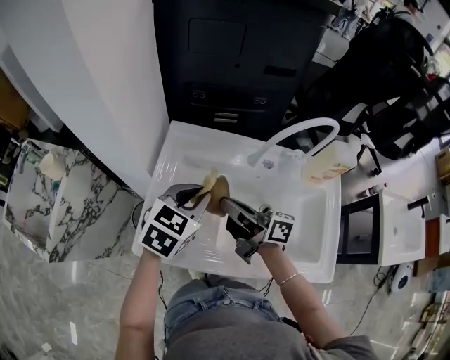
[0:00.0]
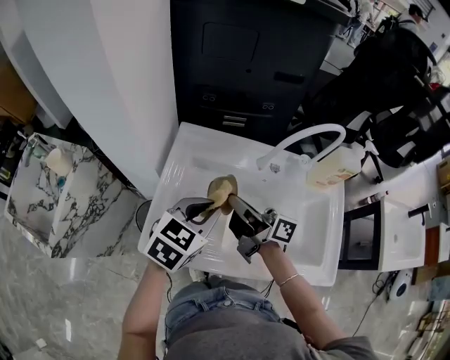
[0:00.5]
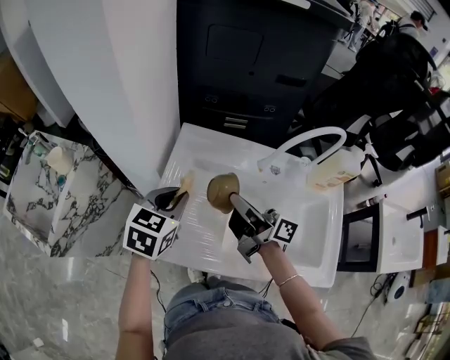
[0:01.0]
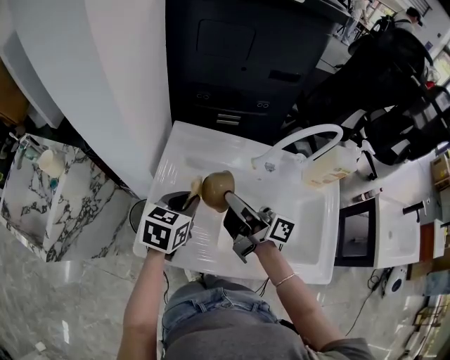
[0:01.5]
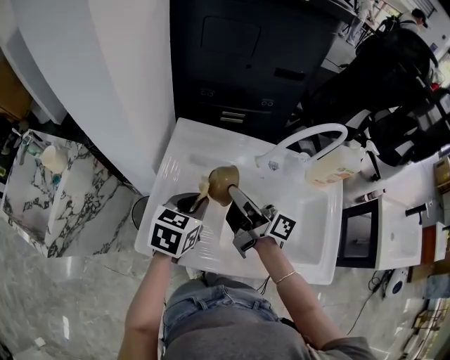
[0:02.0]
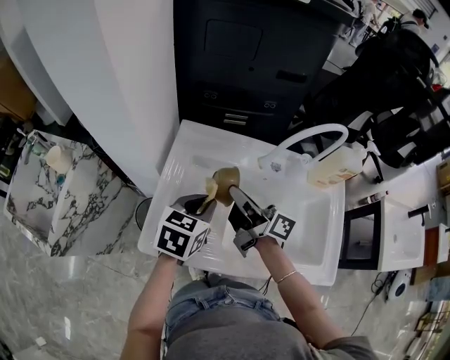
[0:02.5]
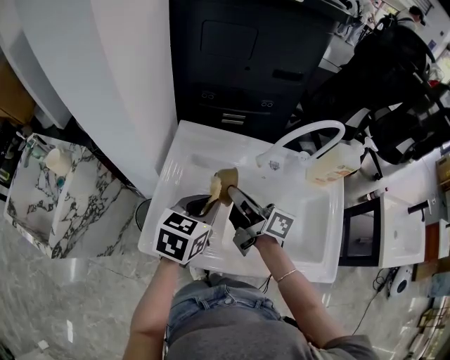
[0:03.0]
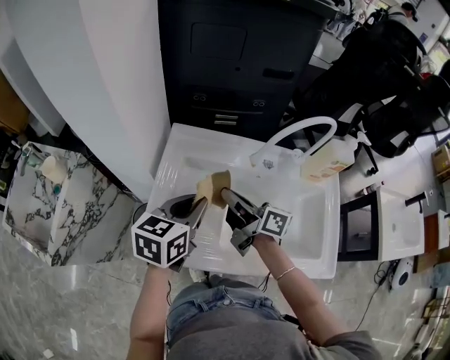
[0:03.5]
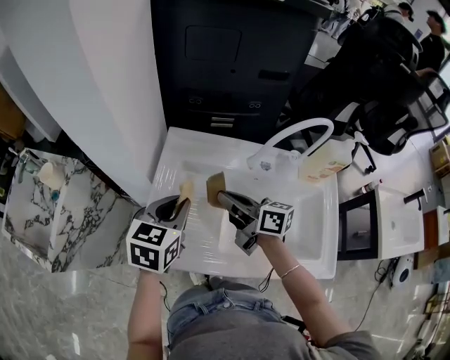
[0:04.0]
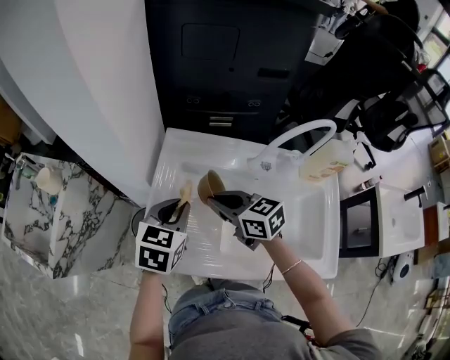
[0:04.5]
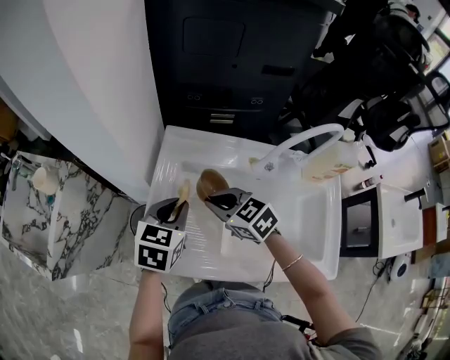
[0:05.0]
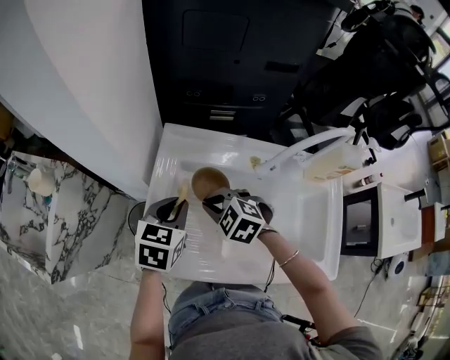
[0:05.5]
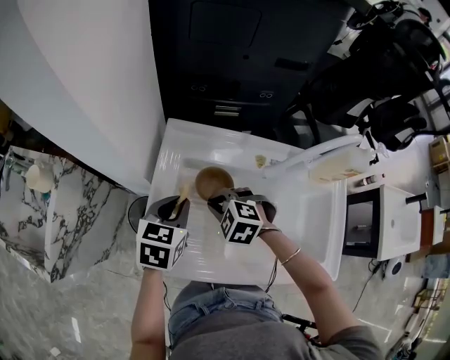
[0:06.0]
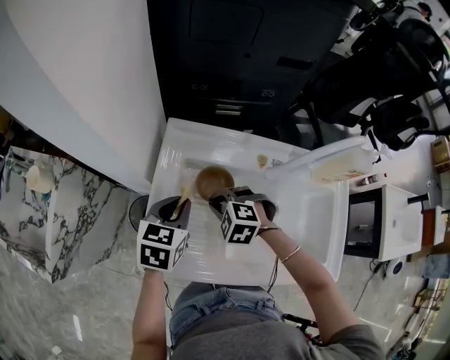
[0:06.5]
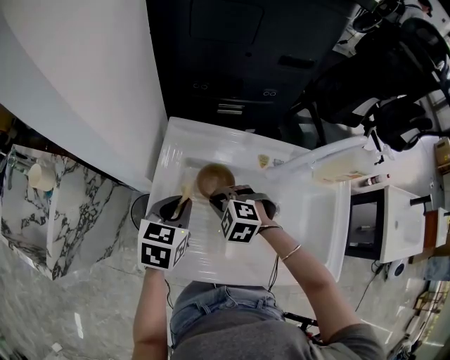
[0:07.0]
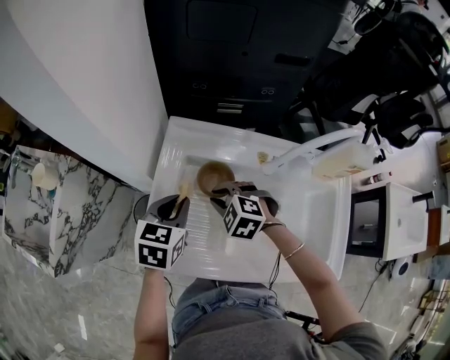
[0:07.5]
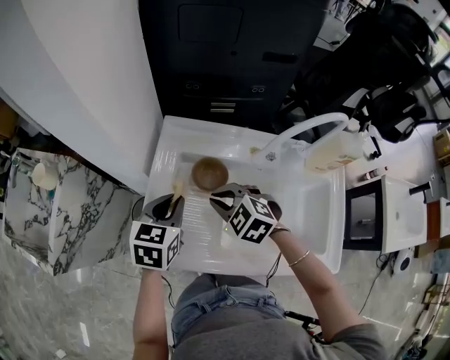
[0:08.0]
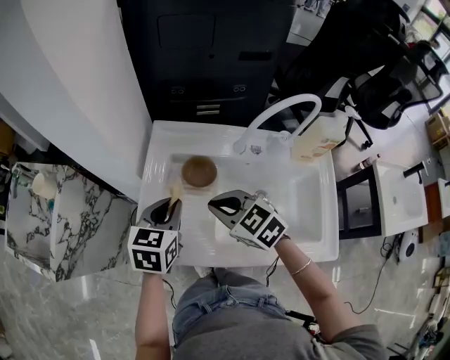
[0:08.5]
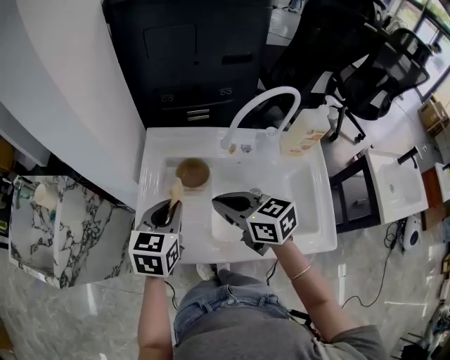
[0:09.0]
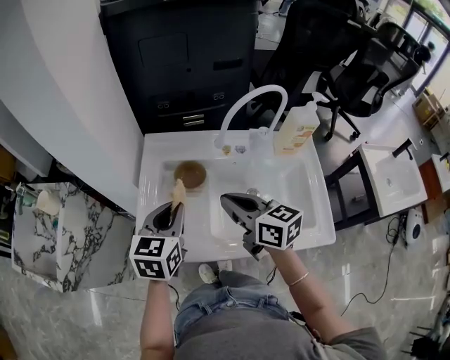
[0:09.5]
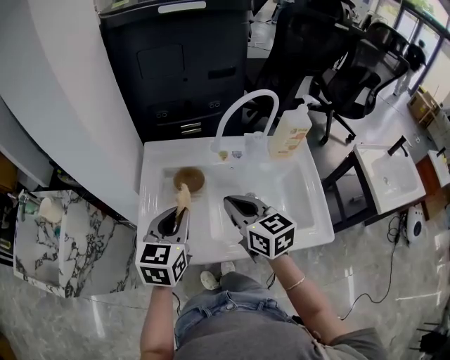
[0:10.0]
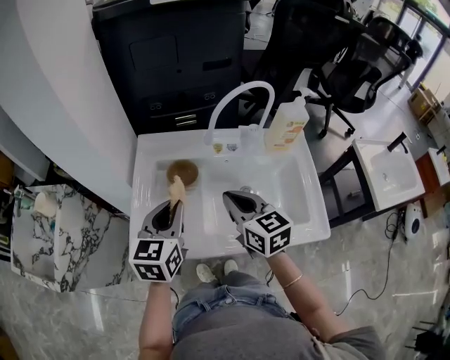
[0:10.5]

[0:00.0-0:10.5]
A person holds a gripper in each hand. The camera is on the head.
0:00.0 to 0:02.0: The left gripper reaches roughly 10 cm to the left, then returns.
0:02.0 to 0:04.0: The left gripper shifts approximately 5 cm upward. Meanwhile the right gripper rotates roughly 30 degrees.
0:04.0 to 0:06.5: The left gripper moves downward, roughly 10 cm. Meanwhile the right gripper shifts approximately 15 cm downward, and angles its fingers downward, by some 60 degrees.
0:06.5 to 0:08.5: The right gripper goes roughly 15 cm upward and backward, and rotates approximately 40 degrees, while the left gripper heads backward, covering roughly 5 cm.
0:08.5 to 0:10.5: The right gripper moves to the right and upward, about 10 cm, and rotates roughly 40 degrees, while the left gripper shifts some 10 cm upward and backward.

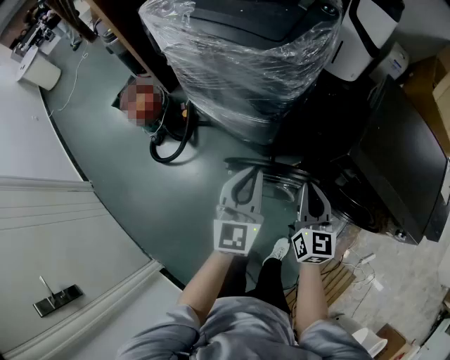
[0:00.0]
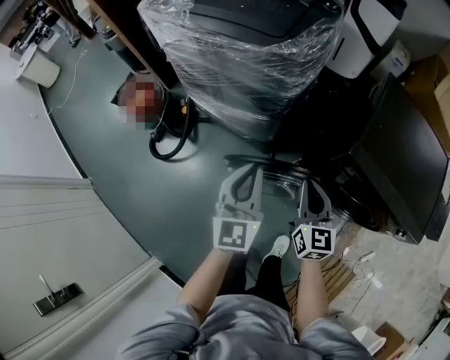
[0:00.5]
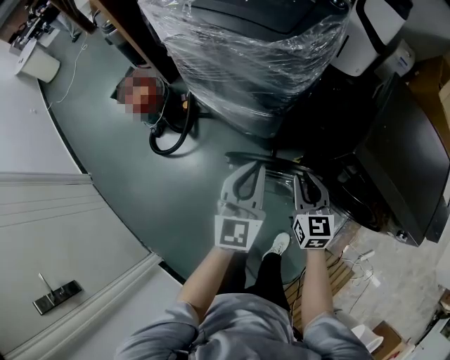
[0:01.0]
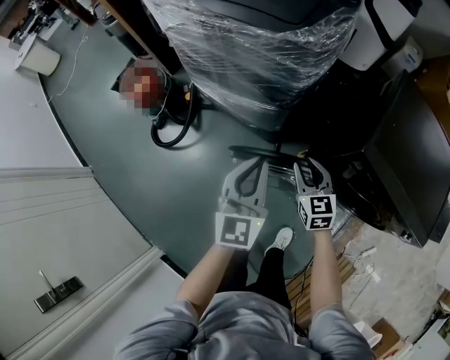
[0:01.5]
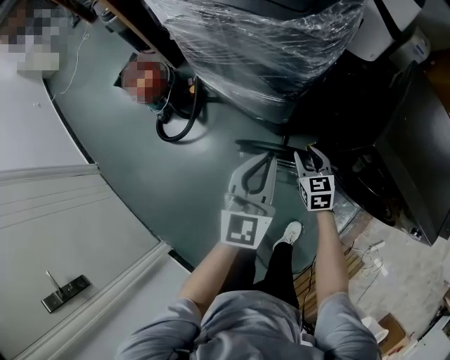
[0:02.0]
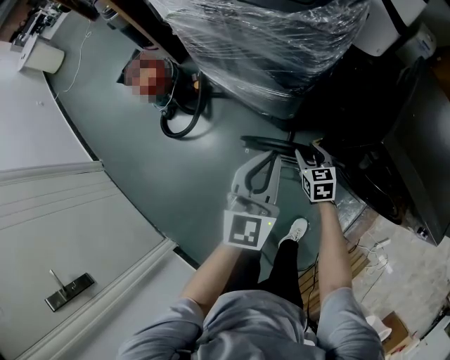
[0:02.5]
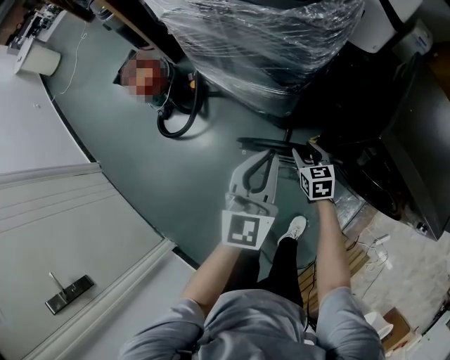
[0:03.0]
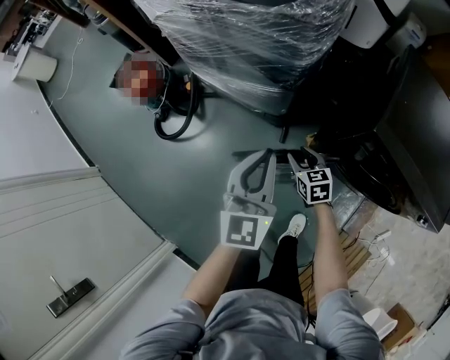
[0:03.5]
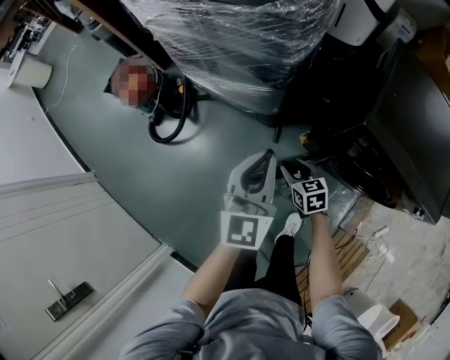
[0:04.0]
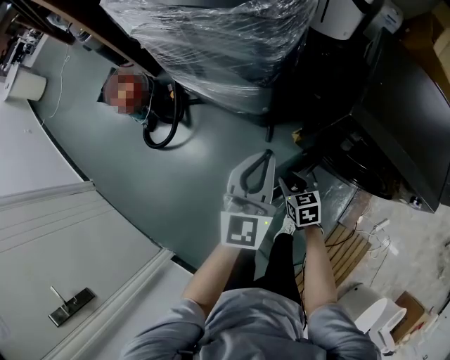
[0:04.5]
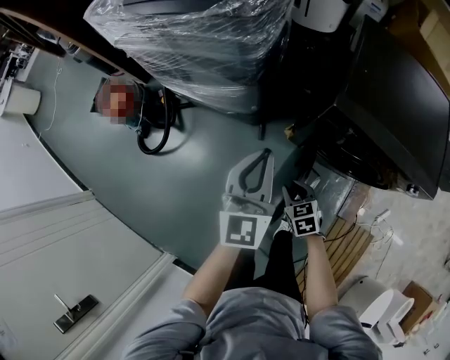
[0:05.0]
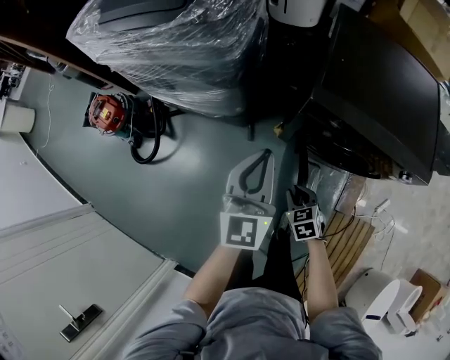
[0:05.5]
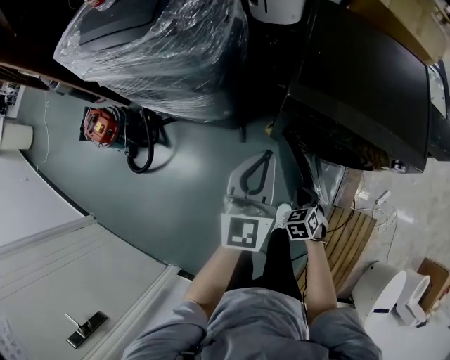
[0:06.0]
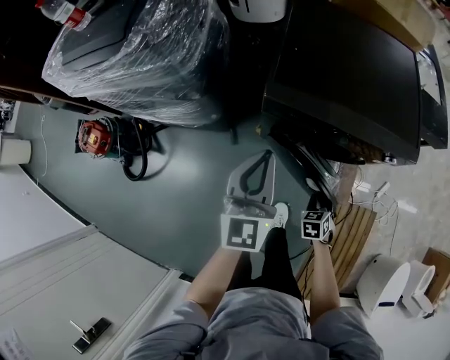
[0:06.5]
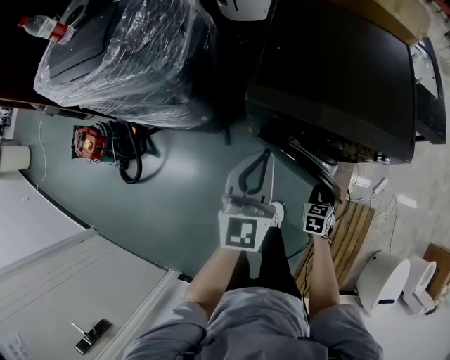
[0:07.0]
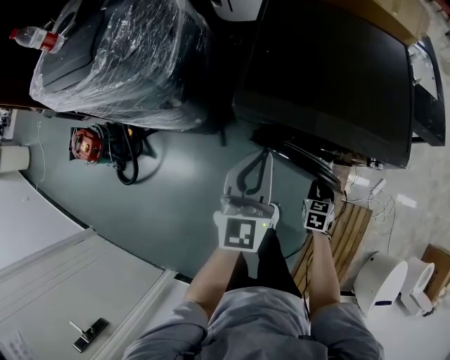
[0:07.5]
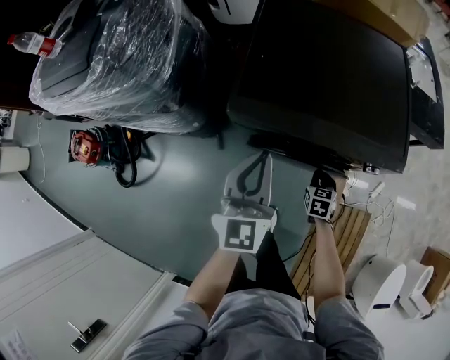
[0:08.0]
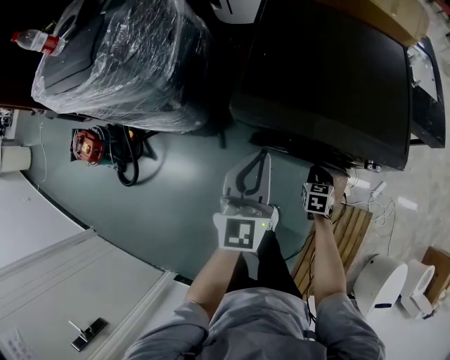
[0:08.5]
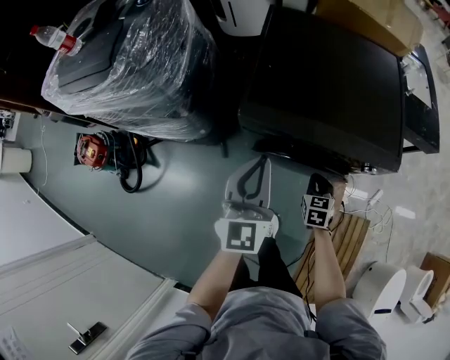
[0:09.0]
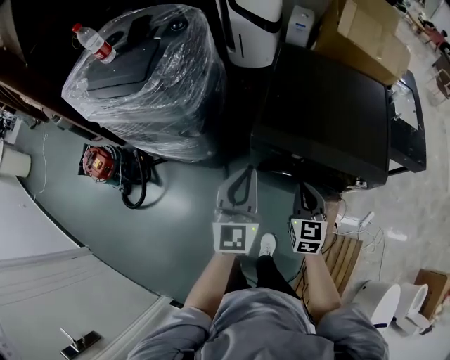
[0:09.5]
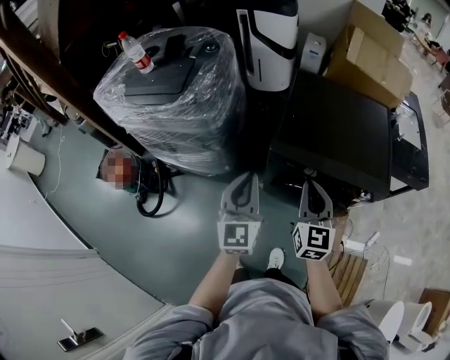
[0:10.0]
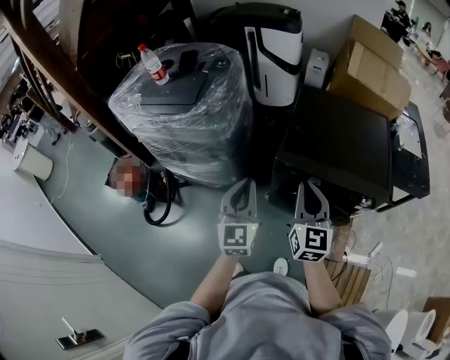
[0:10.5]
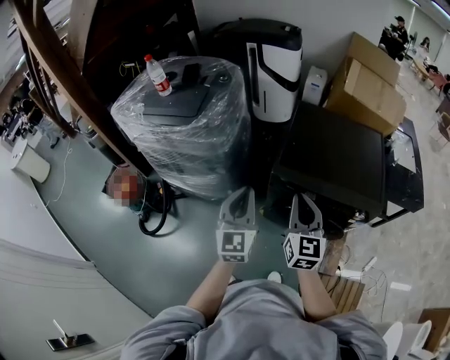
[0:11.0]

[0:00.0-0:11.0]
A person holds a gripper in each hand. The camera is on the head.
0:00.0 to 0:02.0: The right gripper is displaced downward and forward by roughly 20 cm, changes its angle by about 30 degrees, and opens its fingers.
0:02.0 to 0:03.5: The right gripper moves approximately 5 cm.
0:03.5 to 0:05.5: The left gripper goes approximately 15 cm to the right, while the right gripper heads backward and to the right, covering approximately 20 cm, and closes up.
0:05.5 to 0:07.5: The left gripper ends up roughly 20 cm from where it was; the right gripper moves some 30 cm, and changes its angle by about 30 degrees.
0:07.5 to 0:09.0: The right gripper moves upward, about 5 cm.
0:09.0 to 0:11.0: The right gripper travels upward and to the left by some 40 cm, and tilts its fingers roughly 40 degrees upward. The left gripper goes roughly 20 cm to the left, upward and backward.

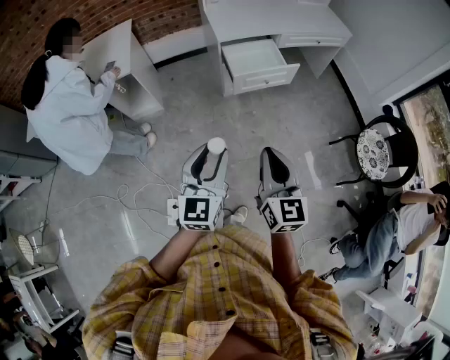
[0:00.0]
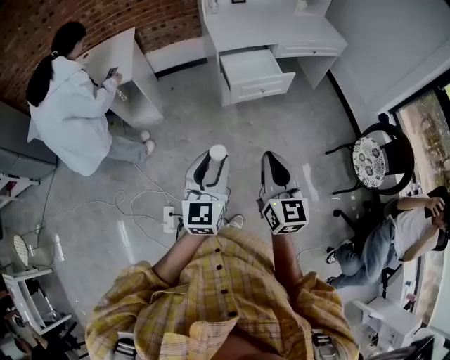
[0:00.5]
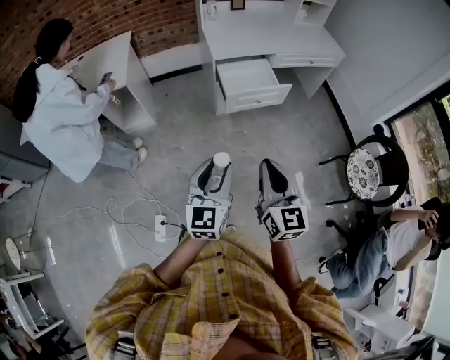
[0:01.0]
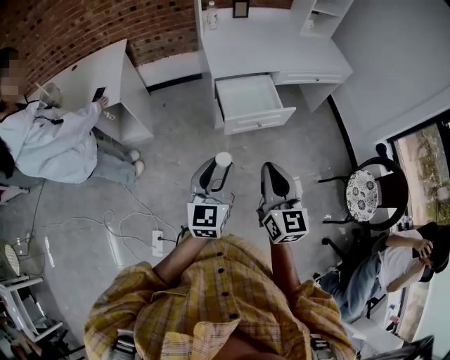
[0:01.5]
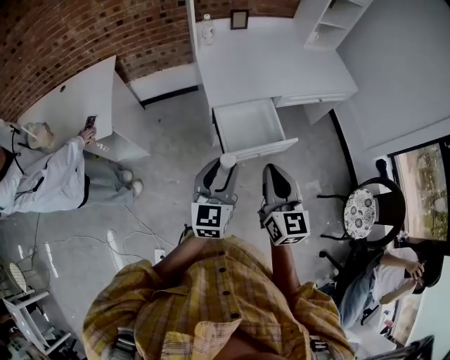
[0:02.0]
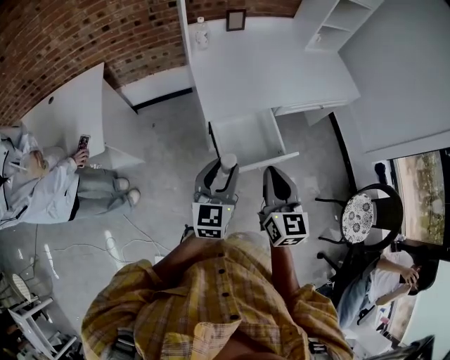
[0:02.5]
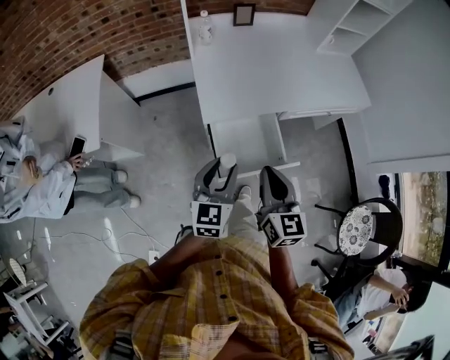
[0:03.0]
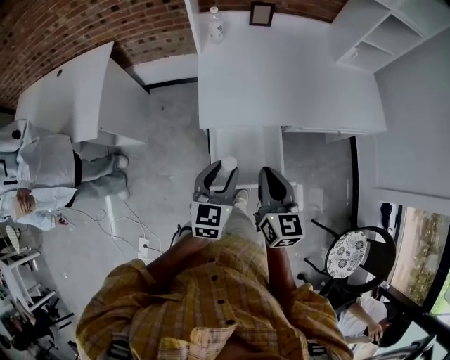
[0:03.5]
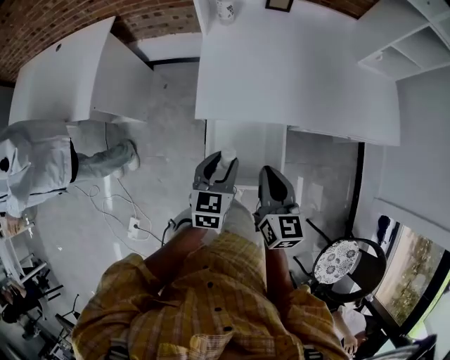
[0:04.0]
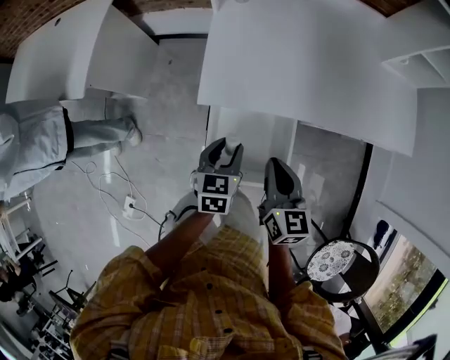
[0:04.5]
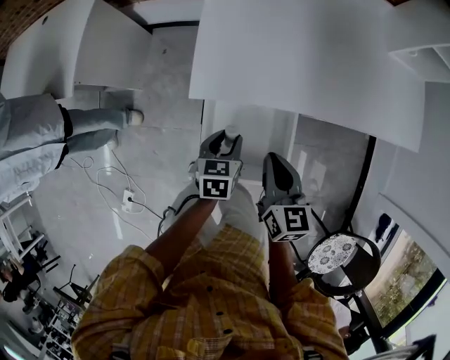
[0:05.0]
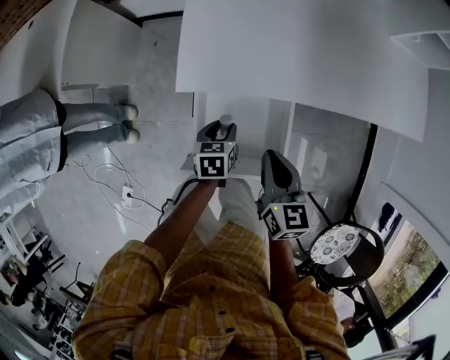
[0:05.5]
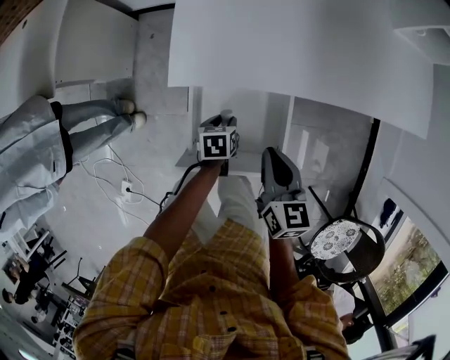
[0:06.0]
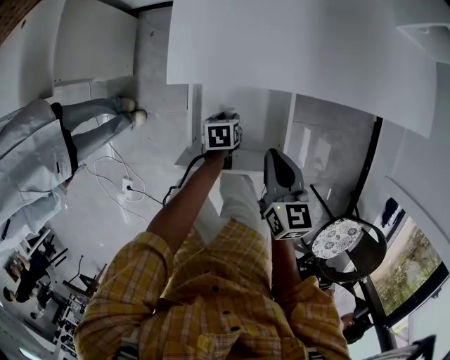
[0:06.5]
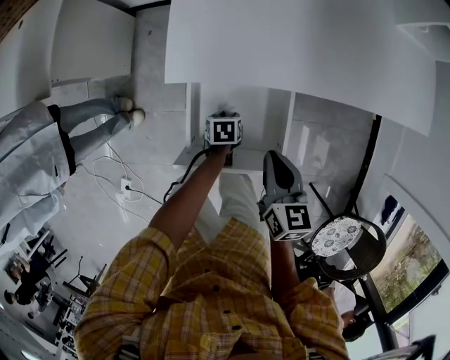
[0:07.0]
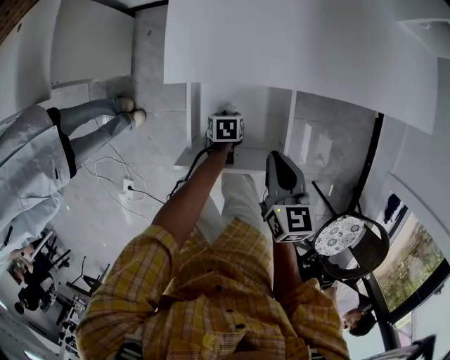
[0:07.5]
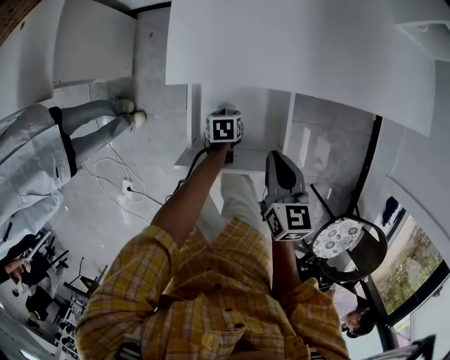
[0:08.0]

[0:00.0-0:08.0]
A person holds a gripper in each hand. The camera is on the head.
0:00.0 to 0:02.0: Both grippers move forward, some 35 cm.
0:02.0 to 0:04.0: Both grippers move forward and downward, roughly 30 cm. The right gripper rotates some 20 degrees. Meanwhile the left gripper turns by approximately 30 degrees.
0:04.0 to 0:06.0: The right gripper heads downward, covering roughly 15 cm. The left gripper heads downward, covering some 25 cm, and rotates approximately 40 degrees.
0:06.0 to 0:08.0: The left gripper goes about 5 cm downward.
